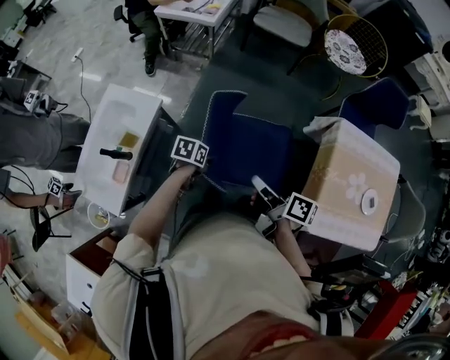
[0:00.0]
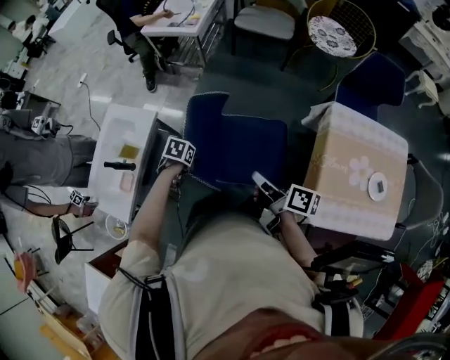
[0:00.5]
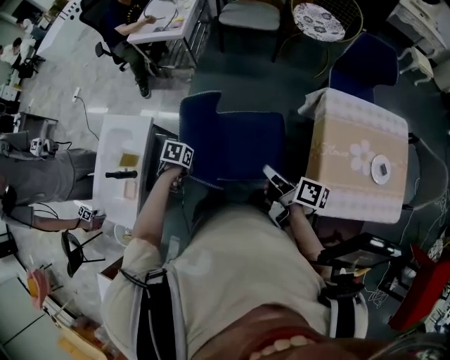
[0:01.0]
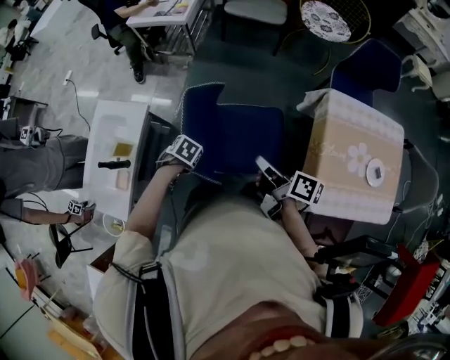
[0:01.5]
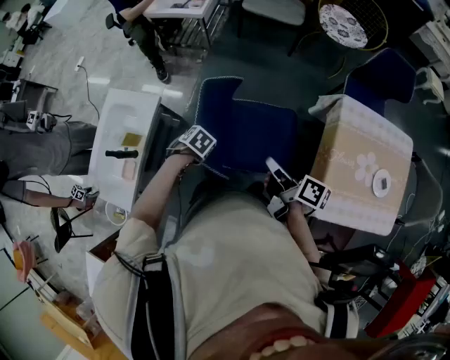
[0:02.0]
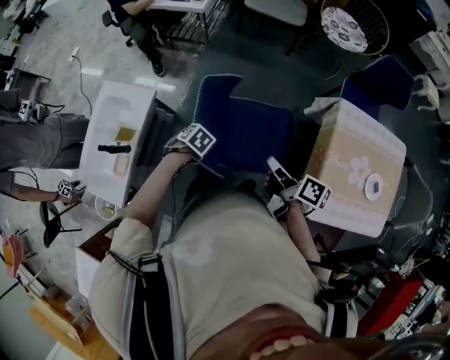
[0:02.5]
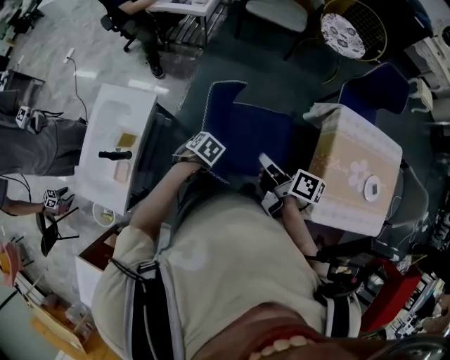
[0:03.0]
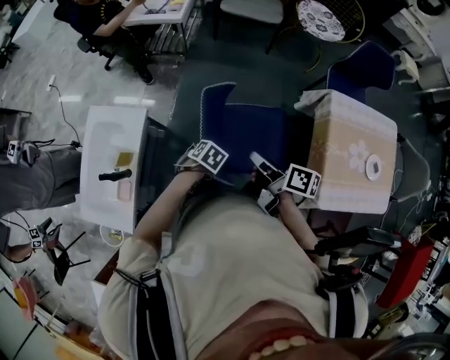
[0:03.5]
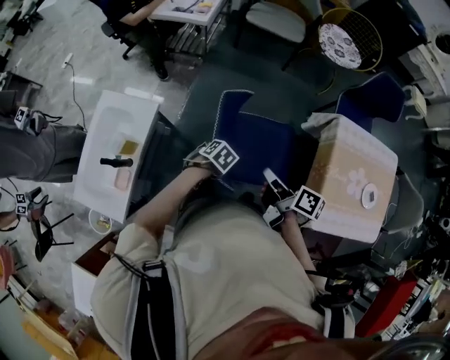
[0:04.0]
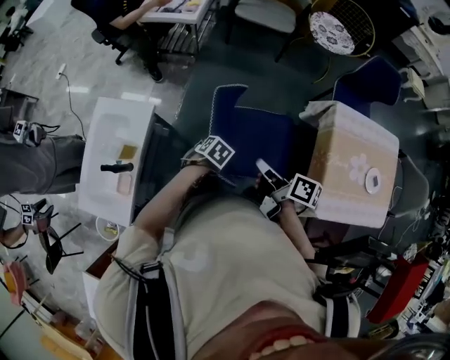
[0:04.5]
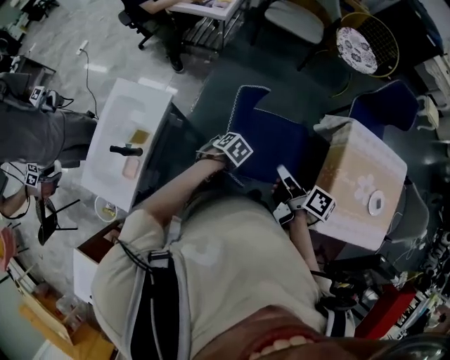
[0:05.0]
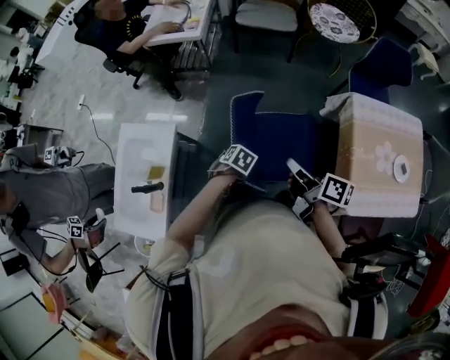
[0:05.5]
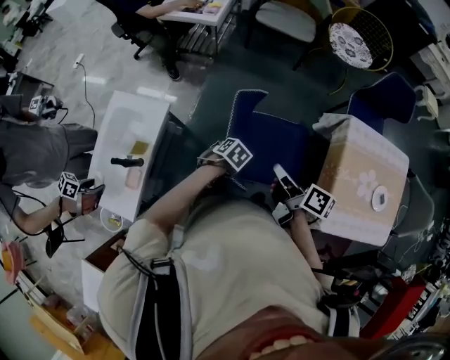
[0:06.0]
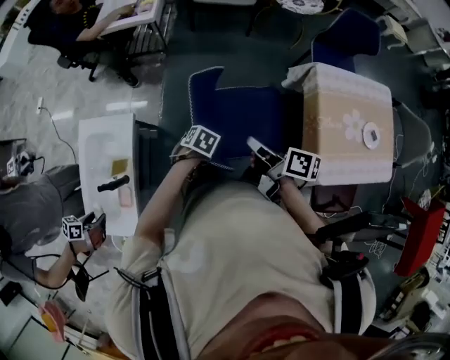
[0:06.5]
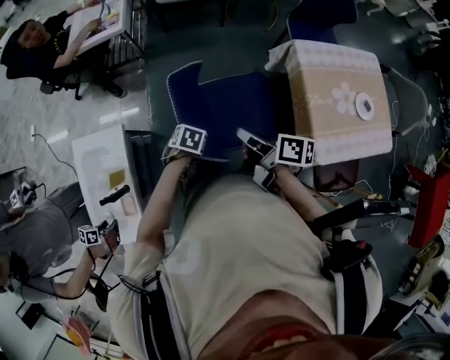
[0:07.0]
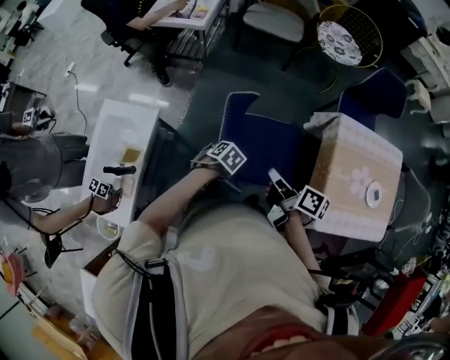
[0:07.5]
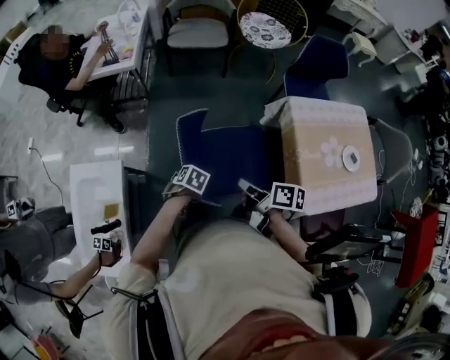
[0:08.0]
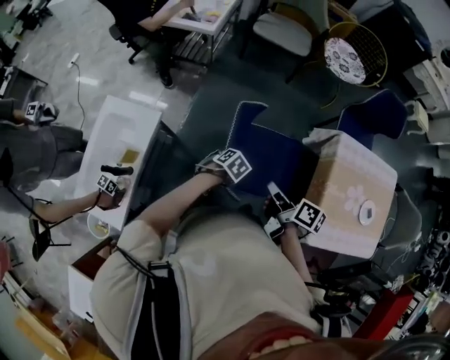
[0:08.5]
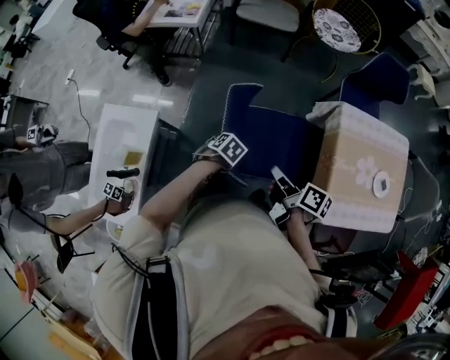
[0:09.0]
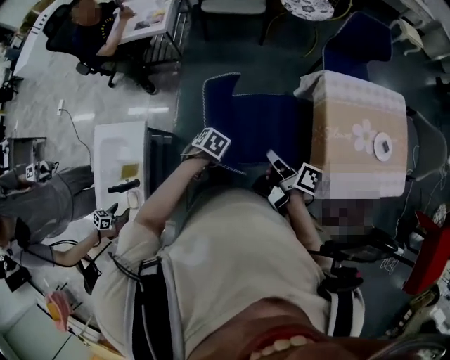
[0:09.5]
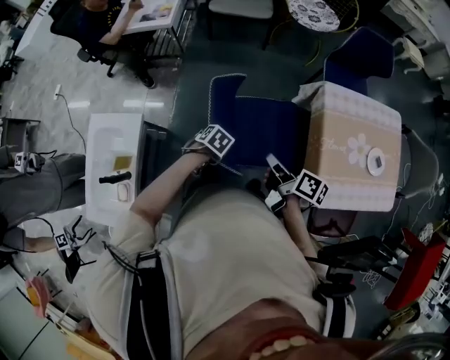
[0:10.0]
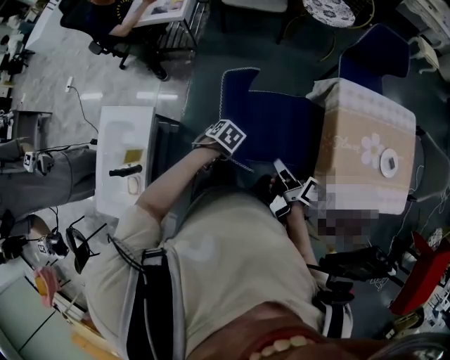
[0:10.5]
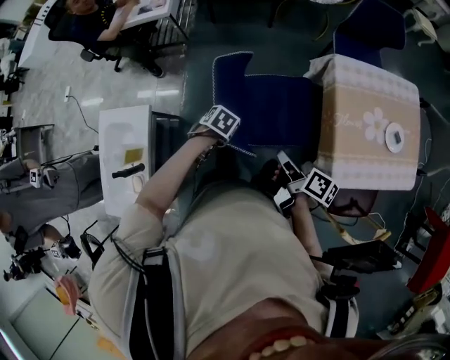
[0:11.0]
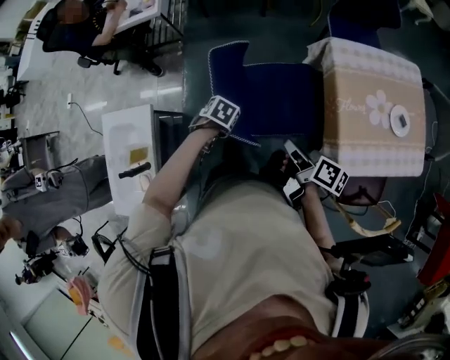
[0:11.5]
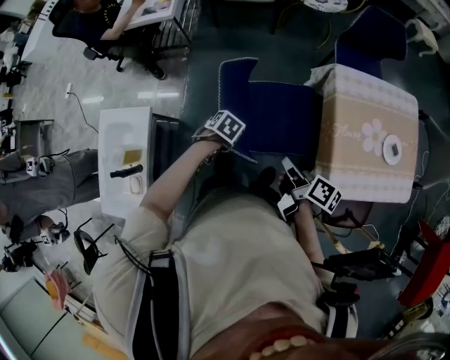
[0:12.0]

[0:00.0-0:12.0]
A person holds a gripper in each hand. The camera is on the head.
0:00.0 to 0:02.0: The right gripper changes place by about 10 cm. Meanwhile the left gripper rotates approximately 40 degrees.
0:04.0 to 0:06.0: The grippers move only a little.
0:06.0 to 0:08.0: The right gripper moves roughly 5 cm.
0:08.0 to 0:10.0: The grippers stay close to where they were, moving slightly.
0:10.0 to 0:12.0: The right gripper moves roughly 5 cm.

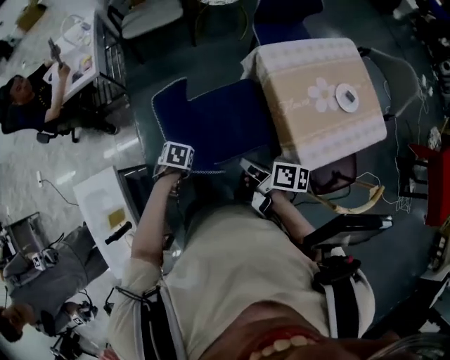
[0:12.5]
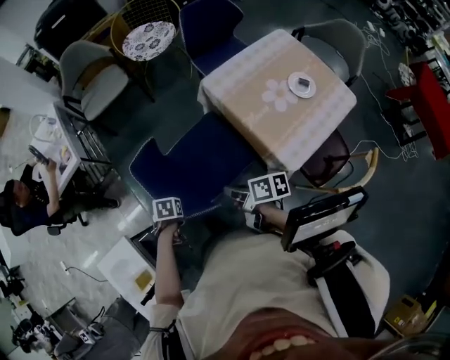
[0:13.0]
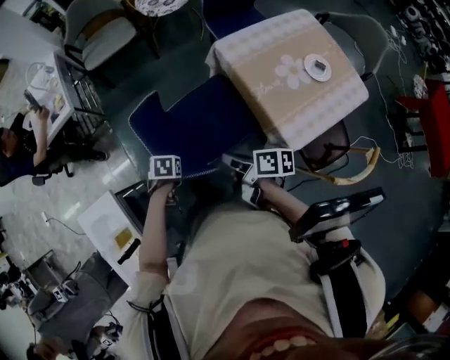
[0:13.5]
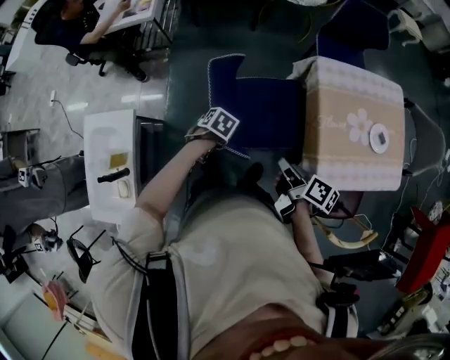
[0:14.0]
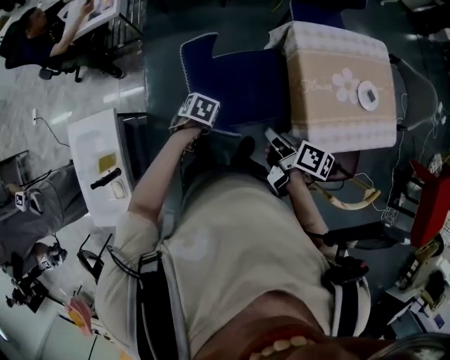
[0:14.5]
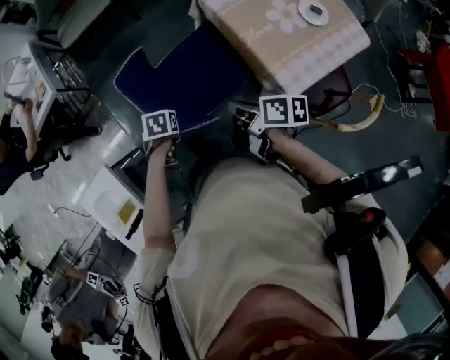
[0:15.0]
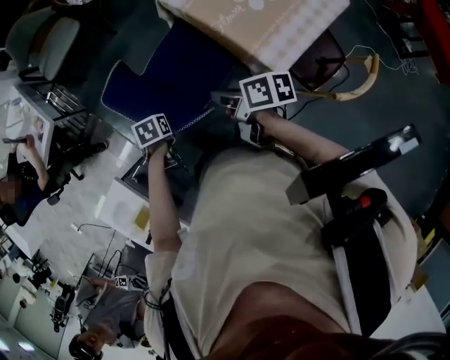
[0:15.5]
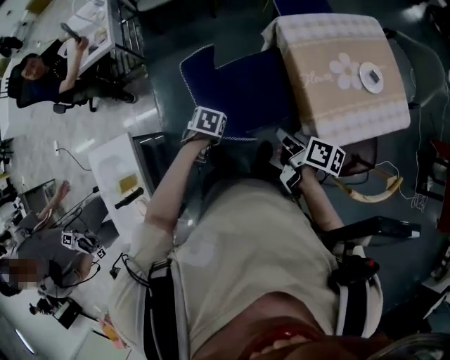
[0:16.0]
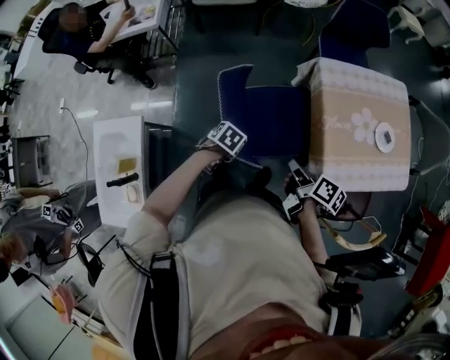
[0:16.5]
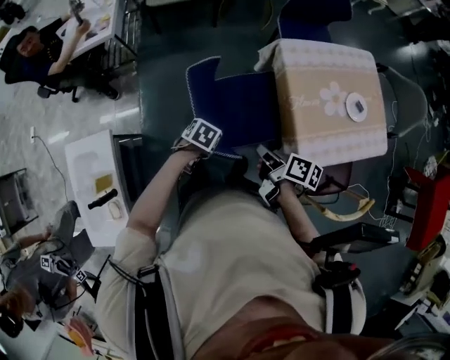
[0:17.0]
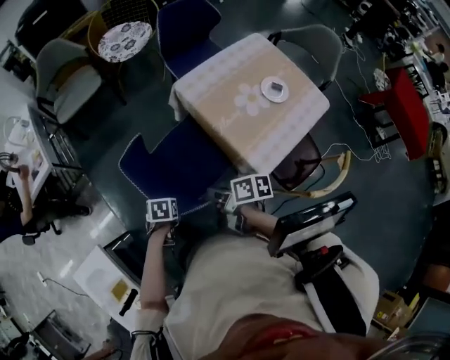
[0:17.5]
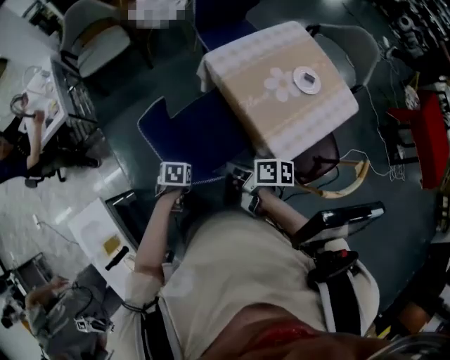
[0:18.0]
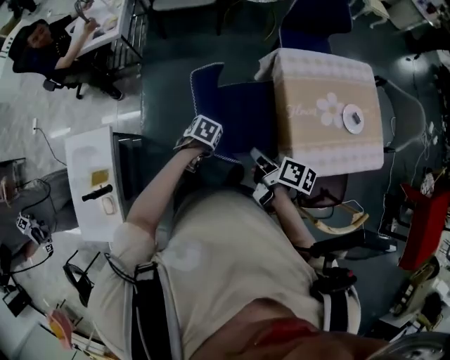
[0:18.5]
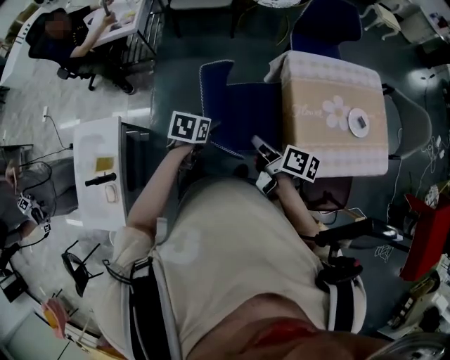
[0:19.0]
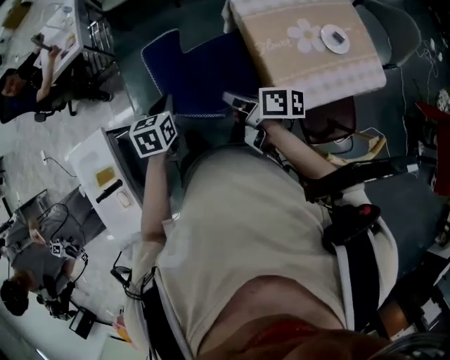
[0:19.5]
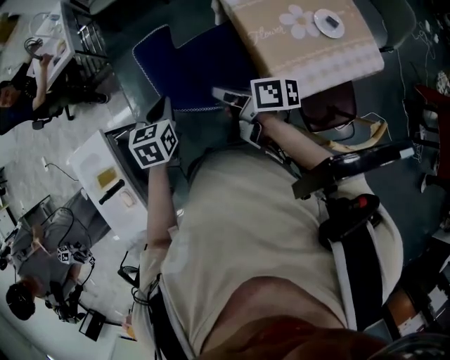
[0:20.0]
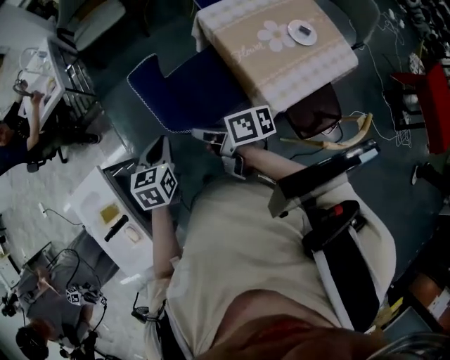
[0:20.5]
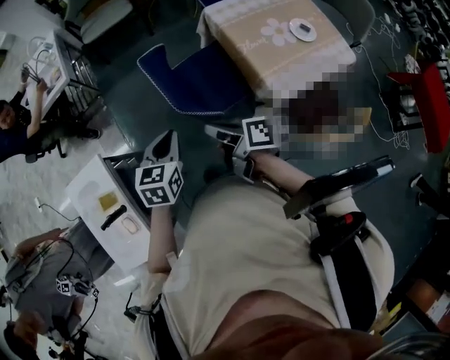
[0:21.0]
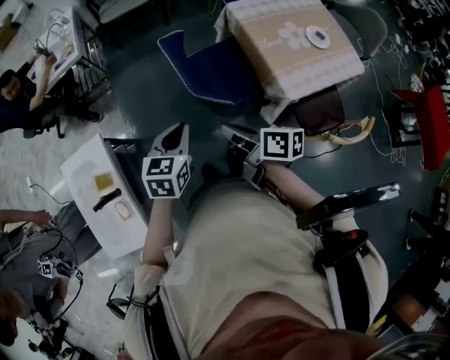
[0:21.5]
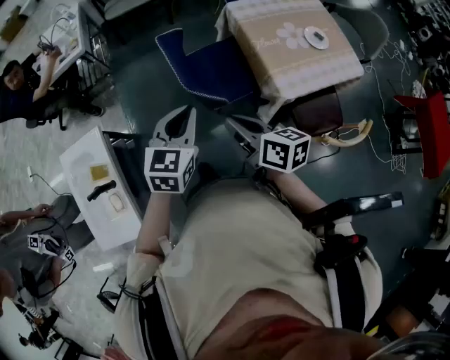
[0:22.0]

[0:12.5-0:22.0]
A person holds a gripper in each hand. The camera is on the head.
0:12.5 to 0:14.5: There are only small adjustments of the grippers.
0:14.5 to 0:16.5: There are only small adjustments of the grippers.
0:16.5 to 0:18.0: The grippers move only a little.
0:18.0 to 0:20.0: The left gripper heads upward, covering some 15 cm, tips its fingers upward by some 30 degrees, and closes its fingers. Meanwhile the right gripper travels upward by roughly 5 cm, and turns by some 20 degrees.
0:20.0 to 0:22.0: The right gripper travels backward, to the left and upward by some 20 cm, and changes its angle by some 30 degrees. Meanwhile the left gripper moves backward and upward, approximately 20 cm, and changes its angle by roughly 30 degrees.

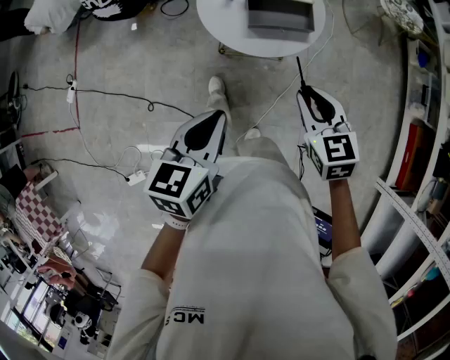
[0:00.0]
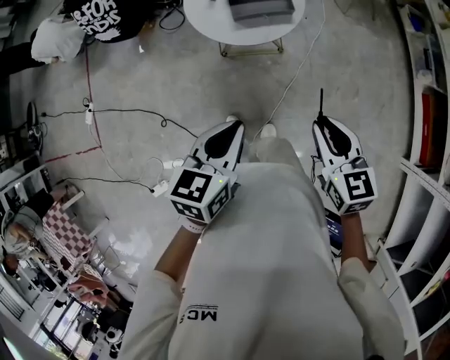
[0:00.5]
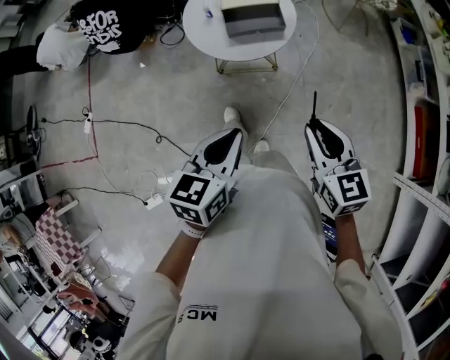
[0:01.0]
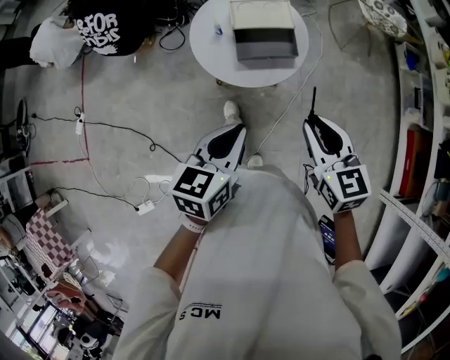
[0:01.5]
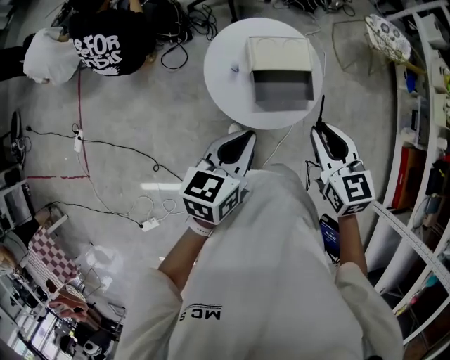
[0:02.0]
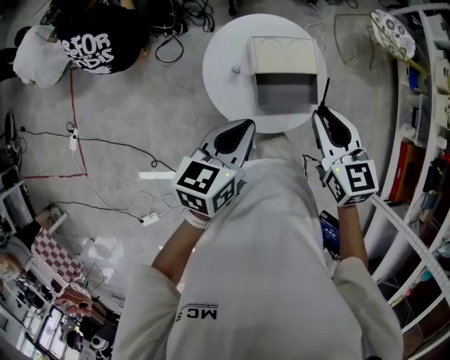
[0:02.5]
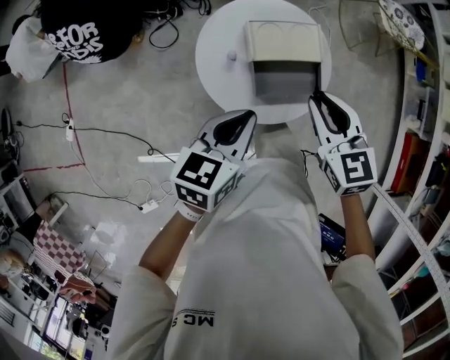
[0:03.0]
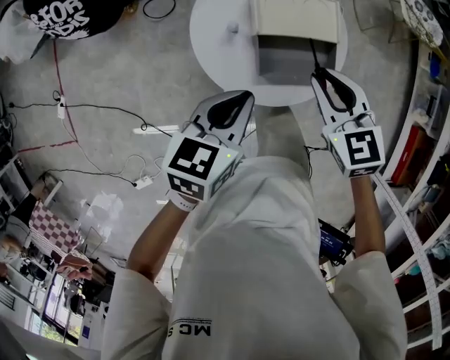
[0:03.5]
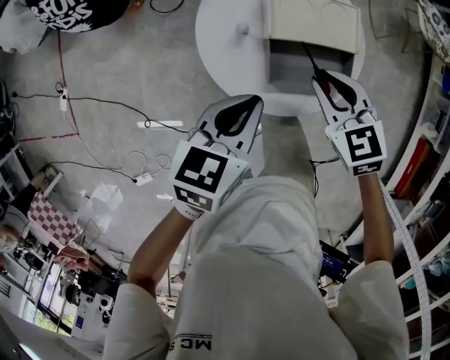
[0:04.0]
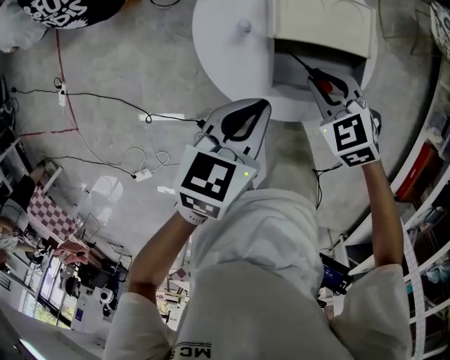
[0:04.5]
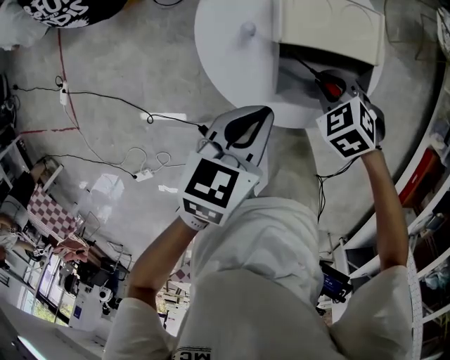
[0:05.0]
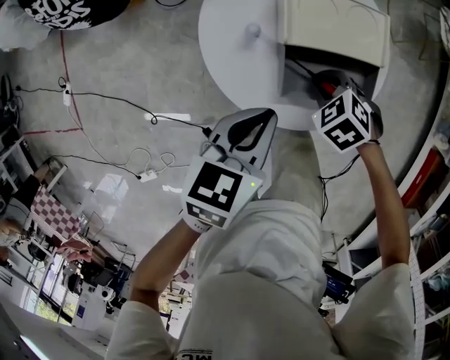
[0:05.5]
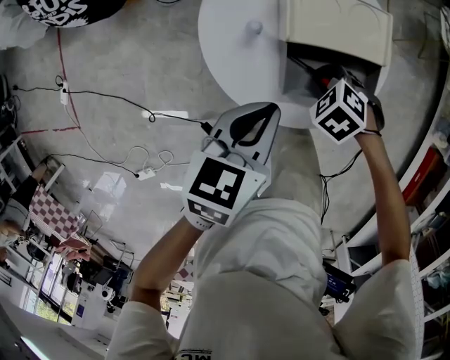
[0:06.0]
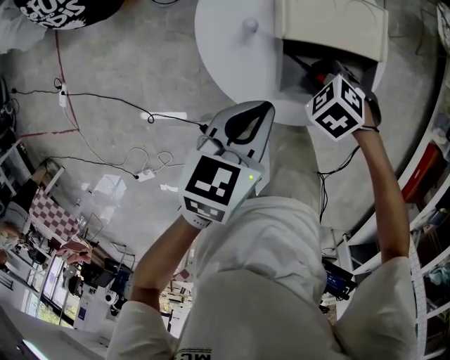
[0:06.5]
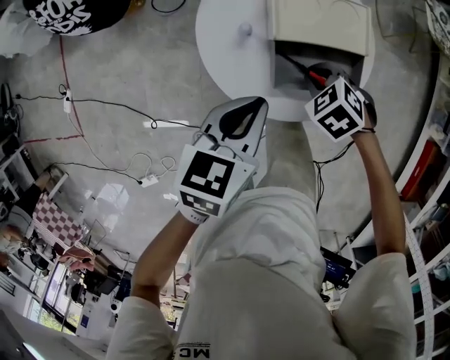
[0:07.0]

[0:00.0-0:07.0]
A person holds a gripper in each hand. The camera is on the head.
0:00.0 to 0:02.0: The left gripper shifts some 20 cm forward; the right gripper goes some 15 cm forward and upward.
0:02.0 to 0:03.5: Both grippers move downward and forward, about 15 cm.
0:03.5 to 0:05.0: The right gripper heads downward, covering about 20 cm, and swivels approximately 40 degrees; the left gripper is displaced downward by approximately 10 cm.
0:05.0 to 0:07.0: The grippers move only a little.
